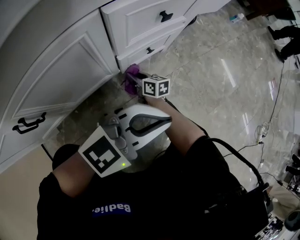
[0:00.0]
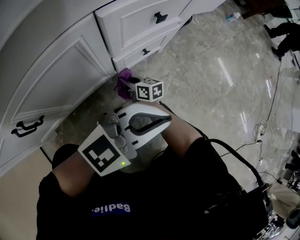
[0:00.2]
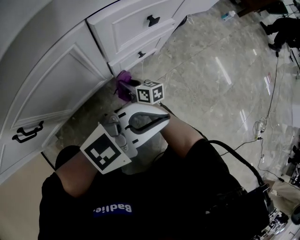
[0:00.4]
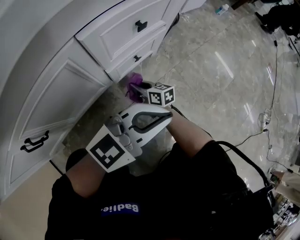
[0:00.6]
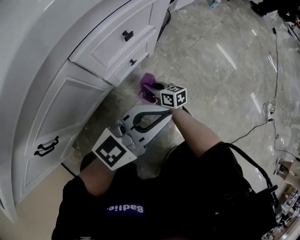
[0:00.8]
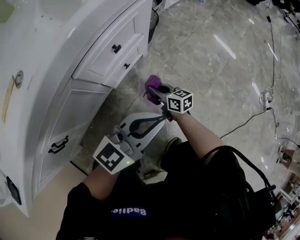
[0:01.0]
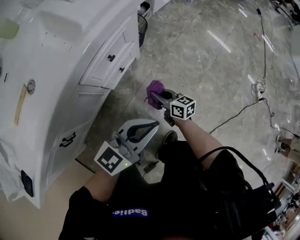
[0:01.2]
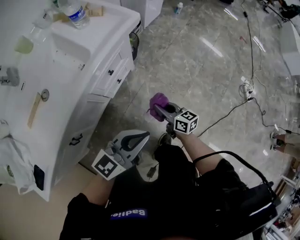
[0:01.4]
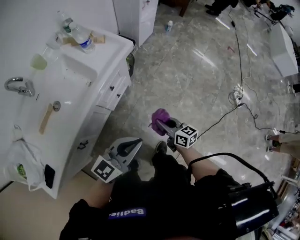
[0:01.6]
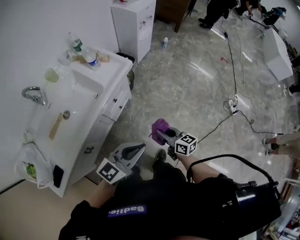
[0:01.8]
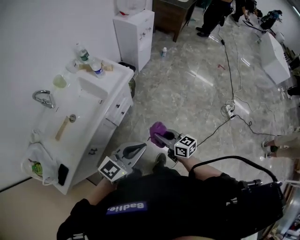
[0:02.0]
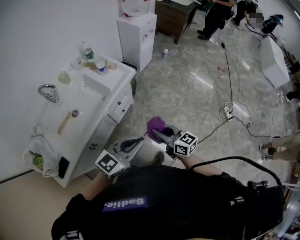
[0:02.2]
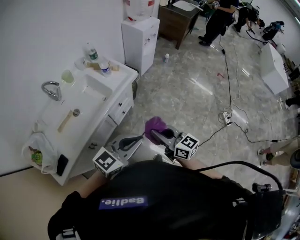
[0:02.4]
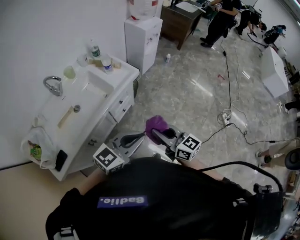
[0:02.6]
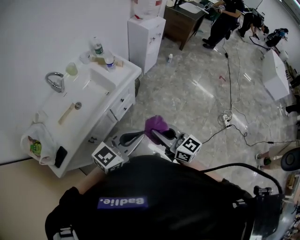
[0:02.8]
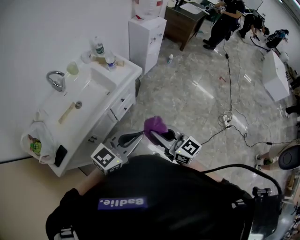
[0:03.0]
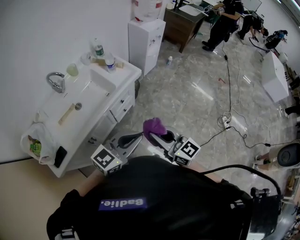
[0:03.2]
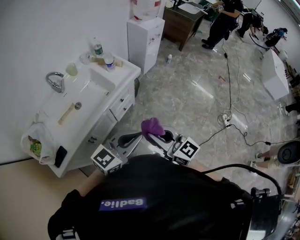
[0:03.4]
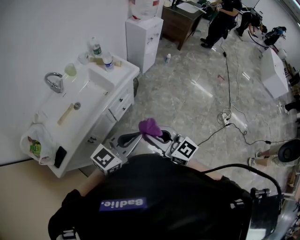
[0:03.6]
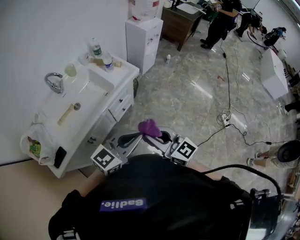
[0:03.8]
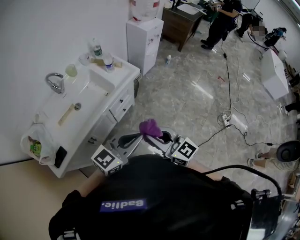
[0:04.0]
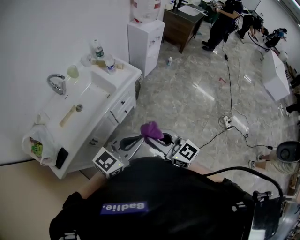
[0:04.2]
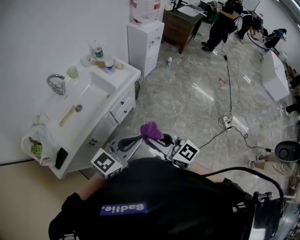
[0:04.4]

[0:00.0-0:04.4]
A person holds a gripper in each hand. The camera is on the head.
0:00.0 to 0:01.4: The two grippers go roughly 35 cm upward. The right gripper swivels about 20 degrees.
0:01.4 to 0:03.0: The two grippers go approximately 40 cm upward. The right gripper turns by about 30 degrees.
0:03.0 to 0:04.4: The grippers move only a little.

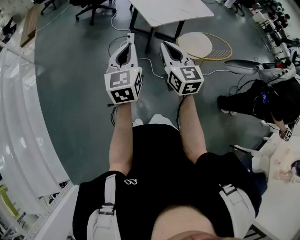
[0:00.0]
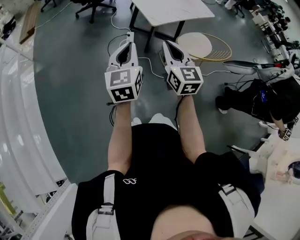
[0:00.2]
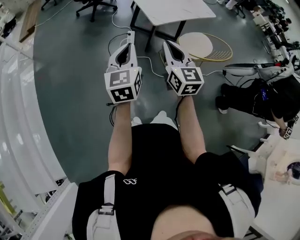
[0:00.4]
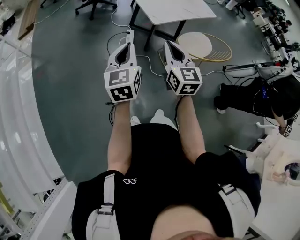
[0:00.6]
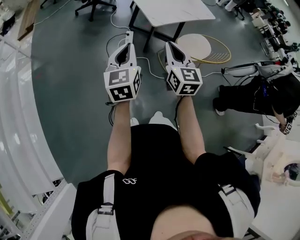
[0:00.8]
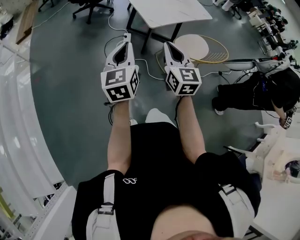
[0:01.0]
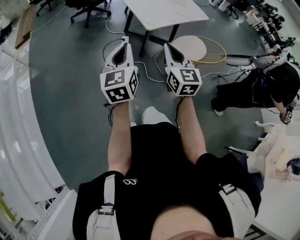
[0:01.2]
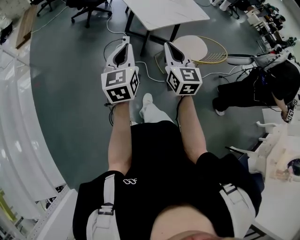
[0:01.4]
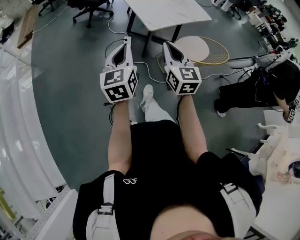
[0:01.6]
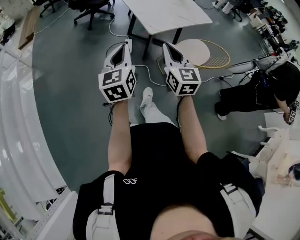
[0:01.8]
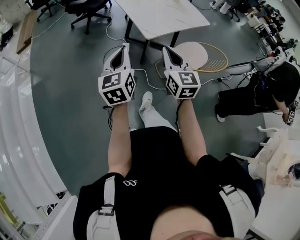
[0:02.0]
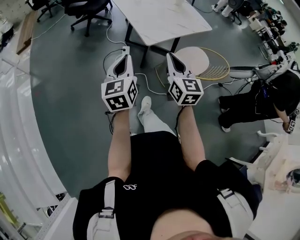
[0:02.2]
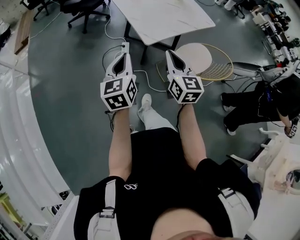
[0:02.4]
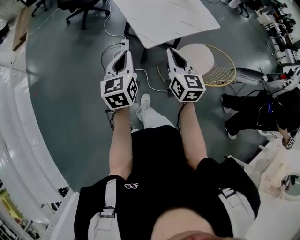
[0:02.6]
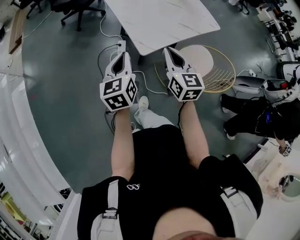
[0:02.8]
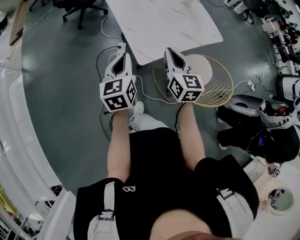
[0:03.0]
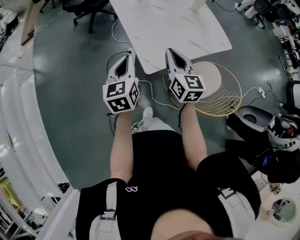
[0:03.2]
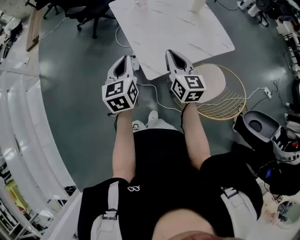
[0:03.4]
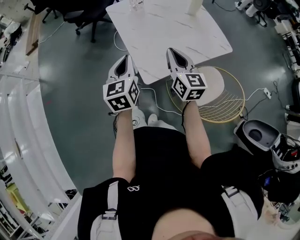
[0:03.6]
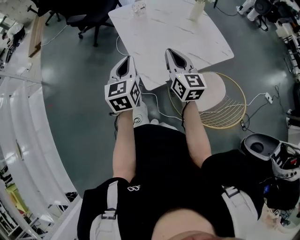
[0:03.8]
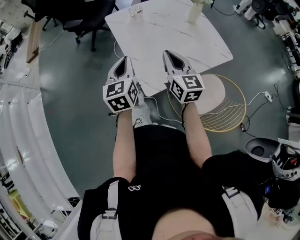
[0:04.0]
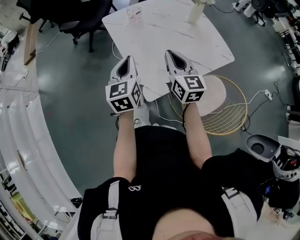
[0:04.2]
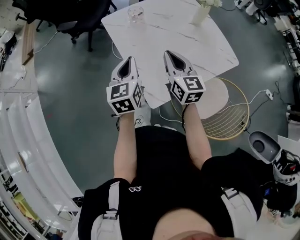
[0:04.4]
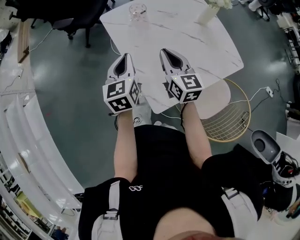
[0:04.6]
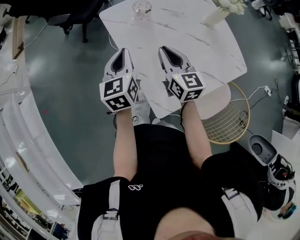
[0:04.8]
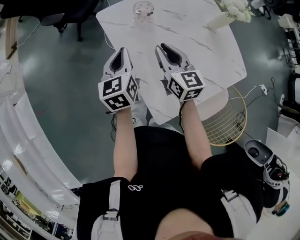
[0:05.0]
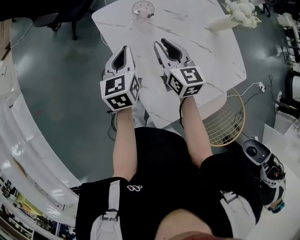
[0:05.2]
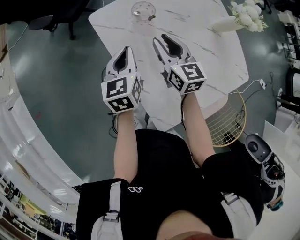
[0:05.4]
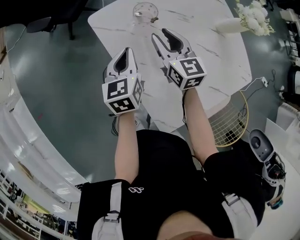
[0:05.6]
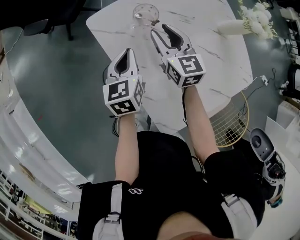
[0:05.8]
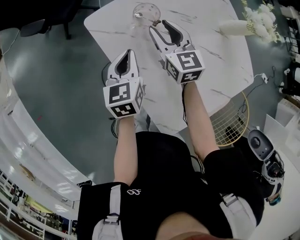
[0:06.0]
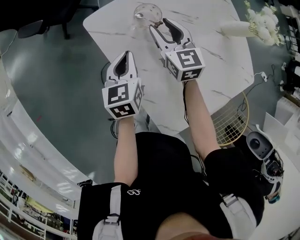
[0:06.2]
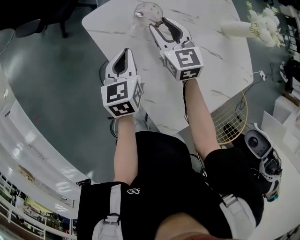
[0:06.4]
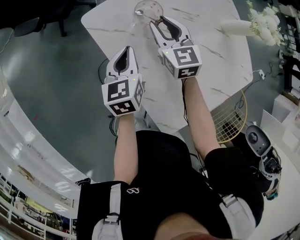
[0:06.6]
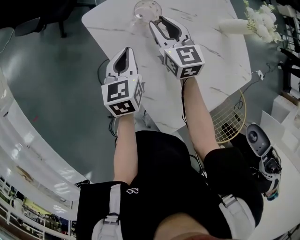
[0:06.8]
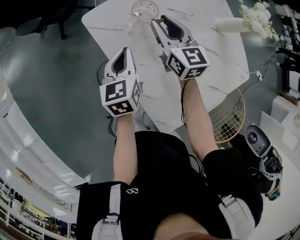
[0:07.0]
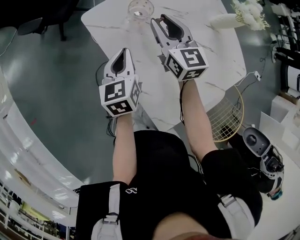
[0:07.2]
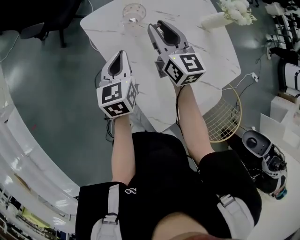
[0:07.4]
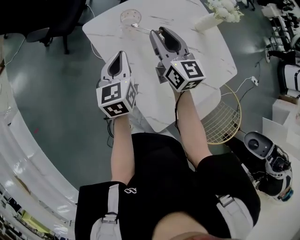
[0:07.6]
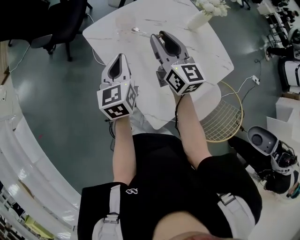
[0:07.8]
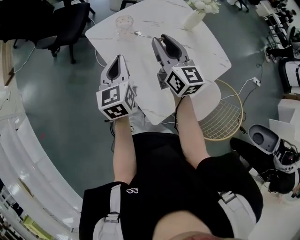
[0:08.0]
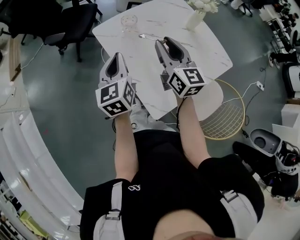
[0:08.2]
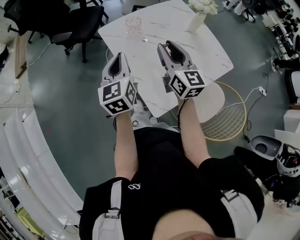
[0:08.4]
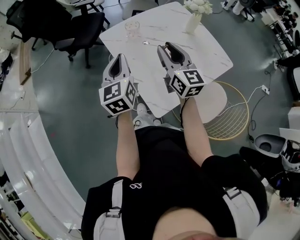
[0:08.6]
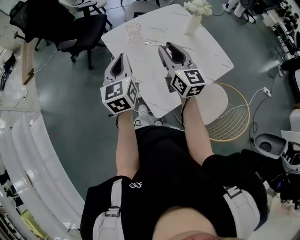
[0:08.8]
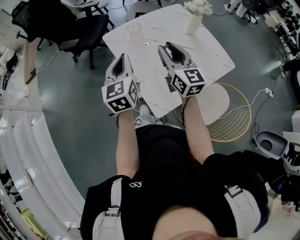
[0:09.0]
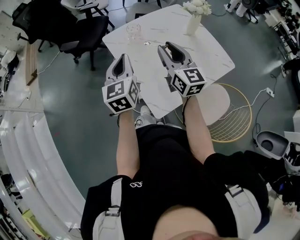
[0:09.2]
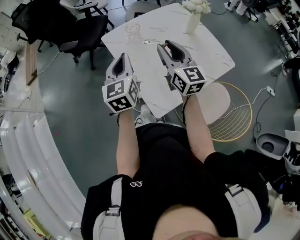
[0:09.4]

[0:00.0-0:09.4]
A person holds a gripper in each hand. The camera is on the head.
0:00.0 to 0:01.6: There are only small adjustments of the grippers.
0:01.6 to 0:03.2: The grippers both shift forward by some 35 cm.
0:03.2 to 0:04.8: Both grippers move forward, roughly 30 cm.
0:04.8 to 0:06.2: The right gripper moves forward, approximately 20 cm, and opens. The left gripper travels forward and downward by approximately 20 cm.
0:06.2 to 0:07.8: Both grippers move upward and backward, about 20 cm. The right gripper turns by some 20 degrees.
0:07.8 to 0:09.4: The two grippers go roughly 15 cm backward and upward.

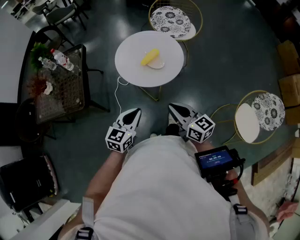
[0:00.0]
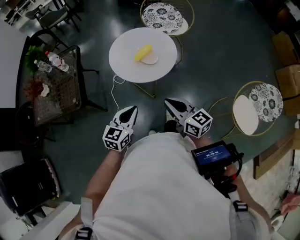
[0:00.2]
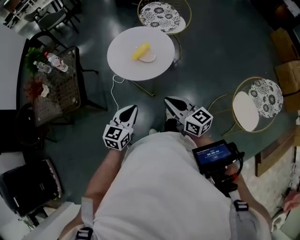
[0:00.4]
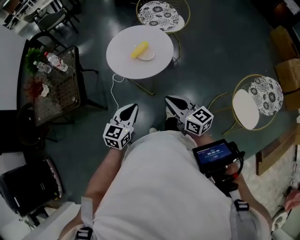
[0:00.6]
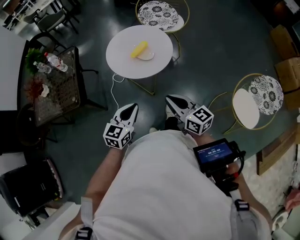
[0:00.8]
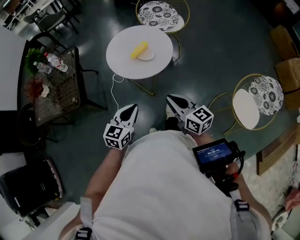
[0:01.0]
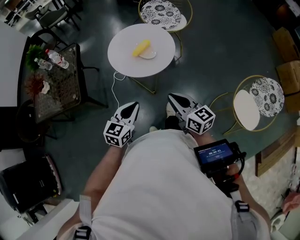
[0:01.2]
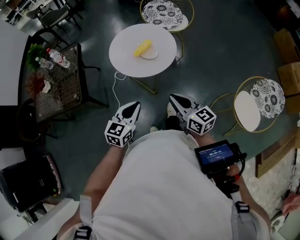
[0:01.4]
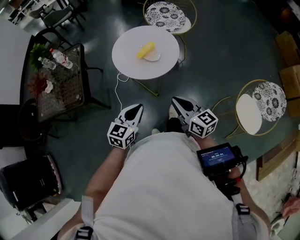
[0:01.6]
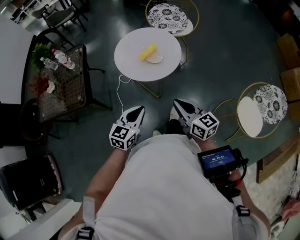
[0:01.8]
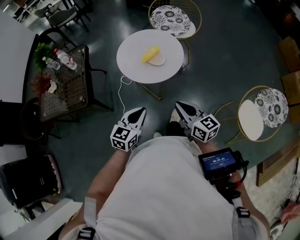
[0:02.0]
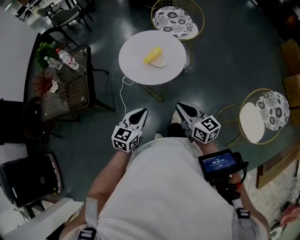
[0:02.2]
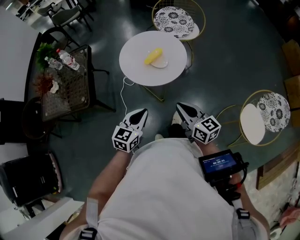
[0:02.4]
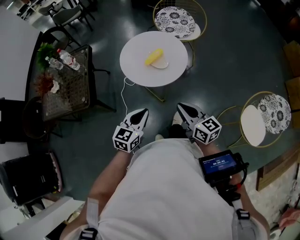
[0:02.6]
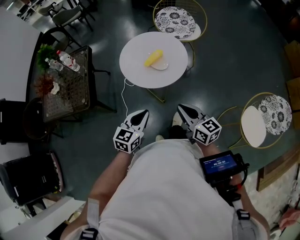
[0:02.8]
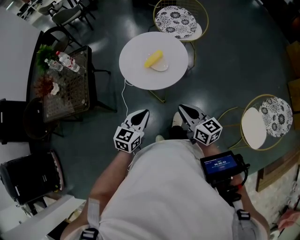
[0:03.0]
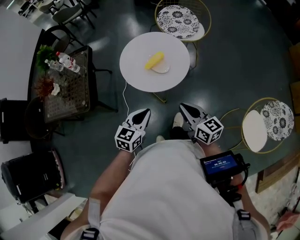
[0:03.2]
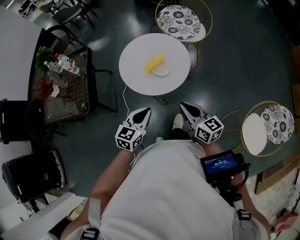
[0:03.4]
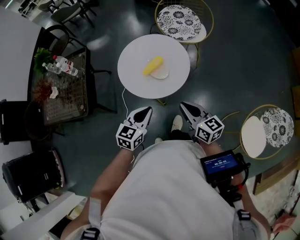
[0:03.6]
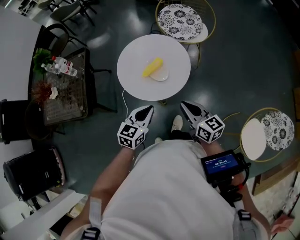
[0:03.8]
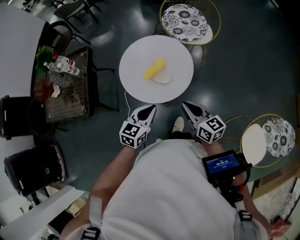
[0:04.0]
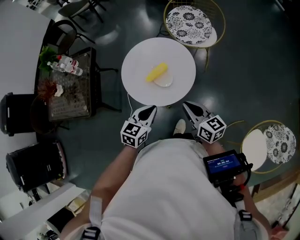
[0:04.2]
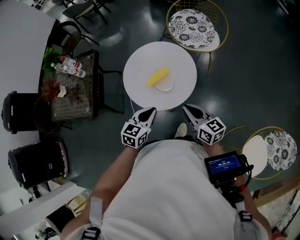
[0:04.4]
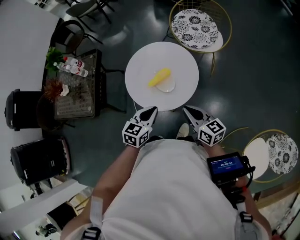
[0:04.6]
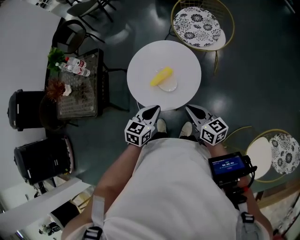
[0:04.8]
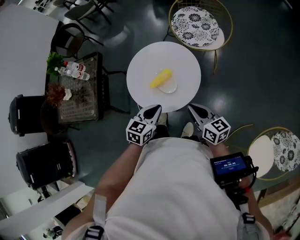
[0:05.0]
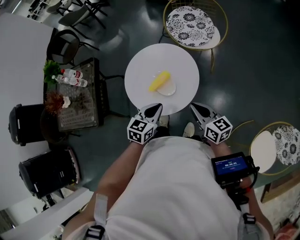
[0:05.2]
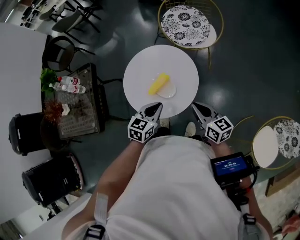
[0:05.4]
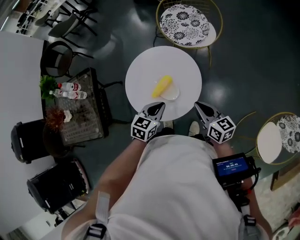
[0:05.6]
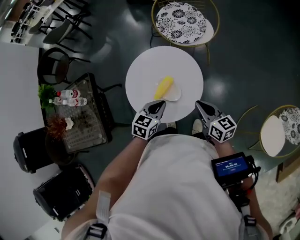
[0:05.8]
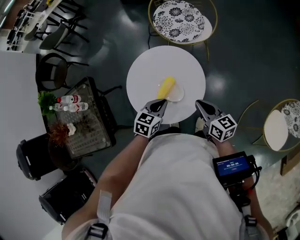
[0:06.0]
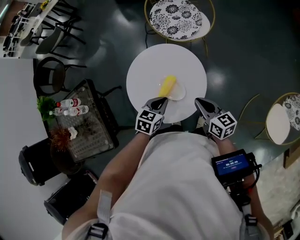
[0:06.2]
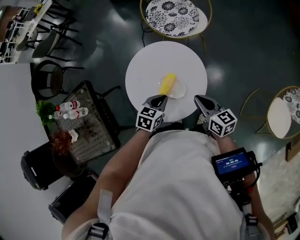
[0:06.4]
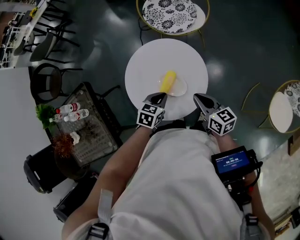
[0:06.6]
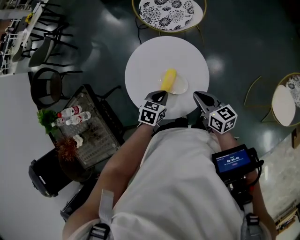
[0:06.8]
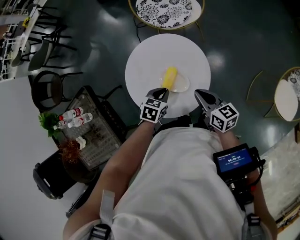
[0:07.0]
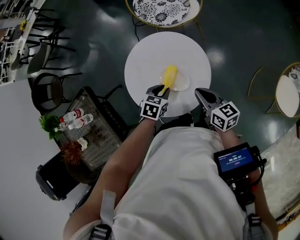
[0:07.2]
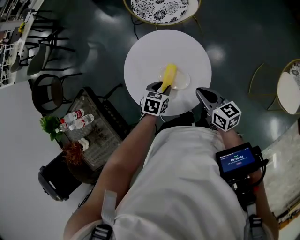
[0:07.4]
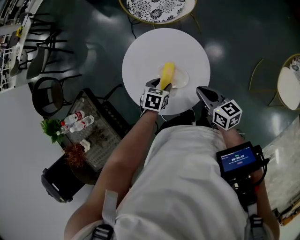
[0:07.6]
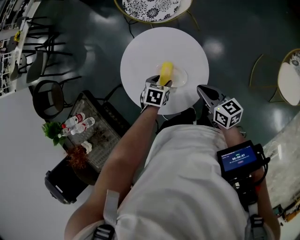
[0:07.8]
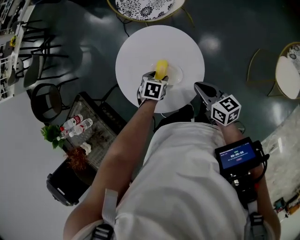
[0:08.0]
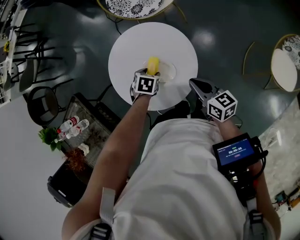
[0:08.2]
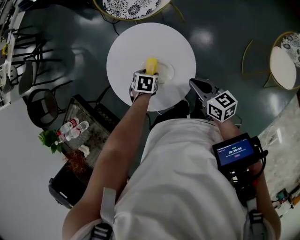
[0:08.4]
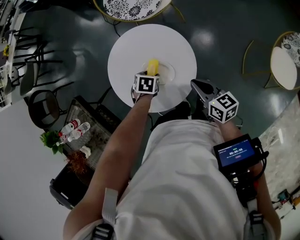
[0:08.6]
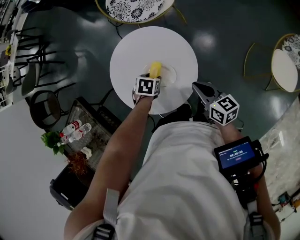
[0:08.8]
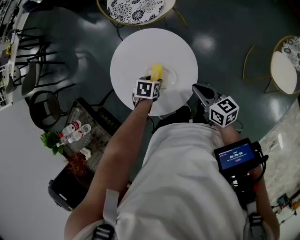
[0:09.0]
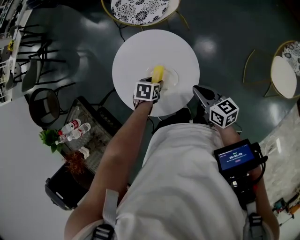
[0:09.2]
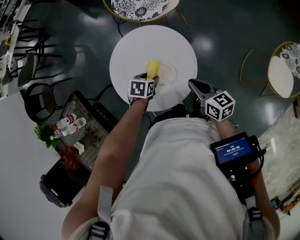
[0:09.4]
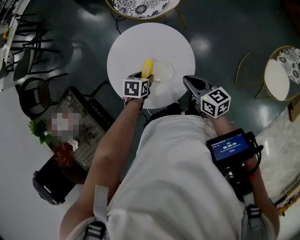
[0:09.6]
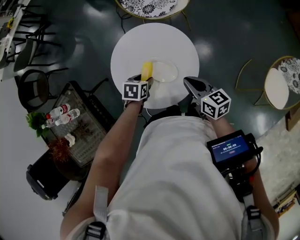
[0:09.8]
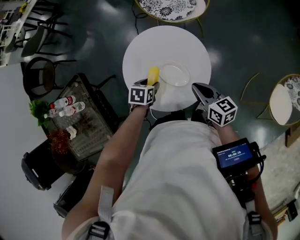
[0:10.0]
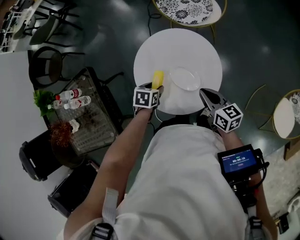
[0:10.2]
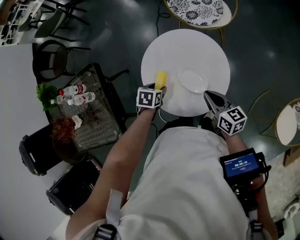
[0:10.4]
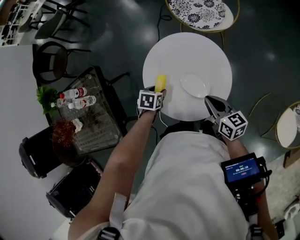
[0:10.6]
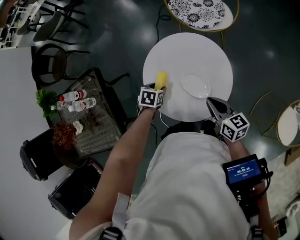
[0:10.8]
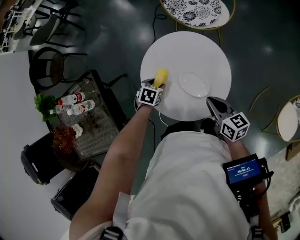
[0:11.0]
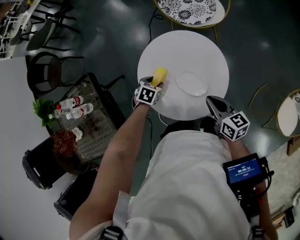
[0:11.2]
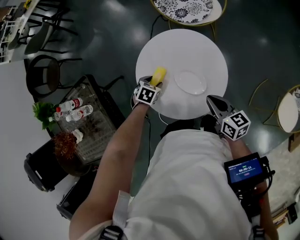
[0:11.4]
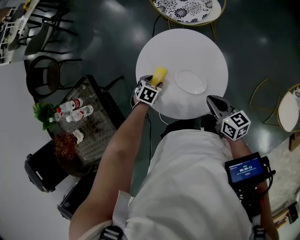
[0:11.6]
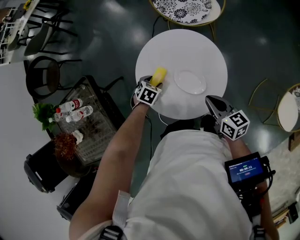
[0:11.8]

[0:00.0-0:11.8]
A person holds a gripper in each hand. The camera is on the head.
0:00.0 to 0:01.4: The grippers make only small movements.
0:01.4 to 0:03.0: There are only small adjustments of the grippers.
0:03.0 to 0:04.4: The right gripper heads forward, covering approximately 15 cm. The left gripper goes approximately 15 cm forward and to the right.
0:04.4 to 0:06.0: The left gripper shifts approximately 15 cm forward and downward, and turns by approximately 20 degrees. The right gripper shifts about 10 cm forward, and turns by some 20 degrees.
0:06.0 to 0:07.4: The right gripper moves roughly 5 cm. Meanwhile the left gripper is displaced downward by roughly 10 cm, swivels roughly 20 degrees, and opens.
0:07.4 to 0:08.8: The left gripper moves downward, about 5 cm.
0:08.8 to 0:10.4: The left gripper moves roughly 15 cm, and turns by about 30 degrees. The right gripper moves approximately 10 cm.
0:10.4 to 0:11.8: The left gripper heads forward and downward, covering some 10 cm, and swivels roughly 30 degrees.
